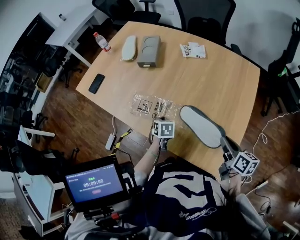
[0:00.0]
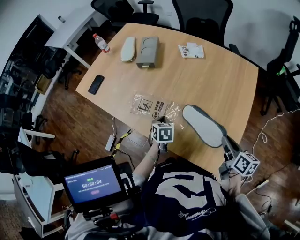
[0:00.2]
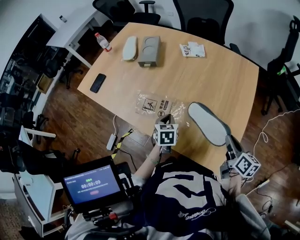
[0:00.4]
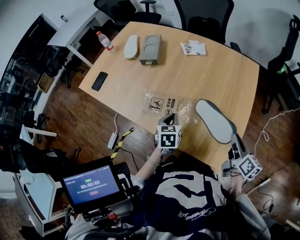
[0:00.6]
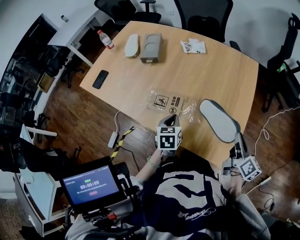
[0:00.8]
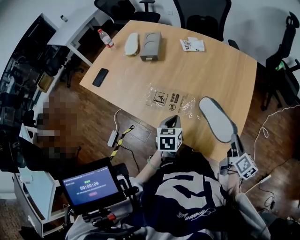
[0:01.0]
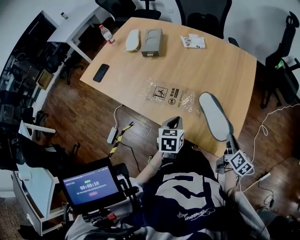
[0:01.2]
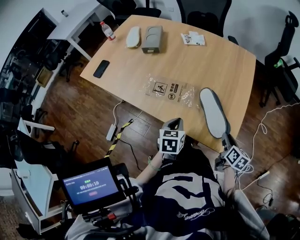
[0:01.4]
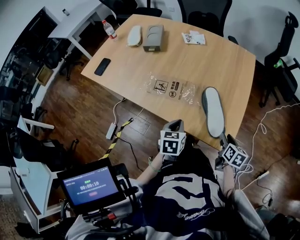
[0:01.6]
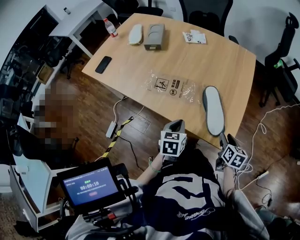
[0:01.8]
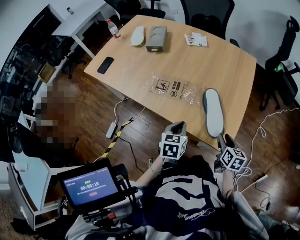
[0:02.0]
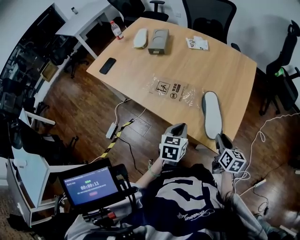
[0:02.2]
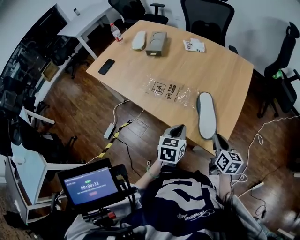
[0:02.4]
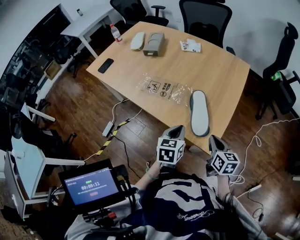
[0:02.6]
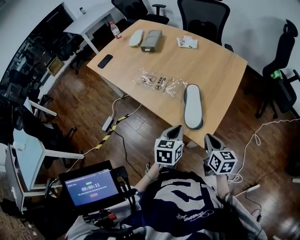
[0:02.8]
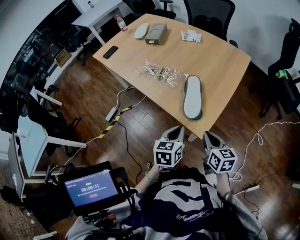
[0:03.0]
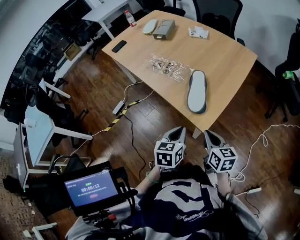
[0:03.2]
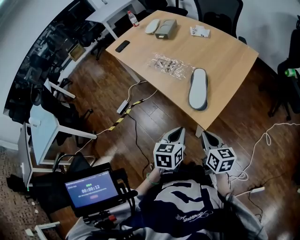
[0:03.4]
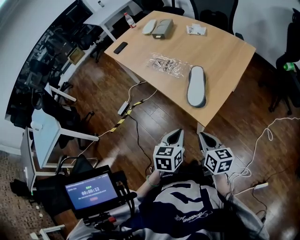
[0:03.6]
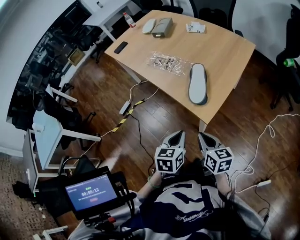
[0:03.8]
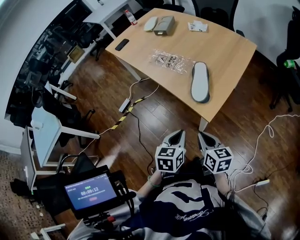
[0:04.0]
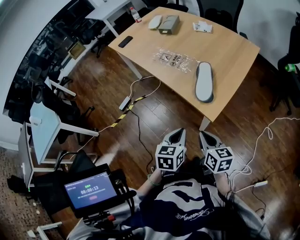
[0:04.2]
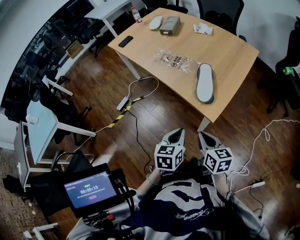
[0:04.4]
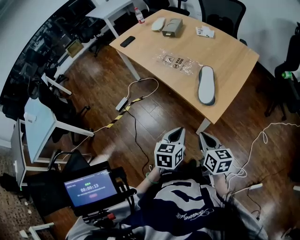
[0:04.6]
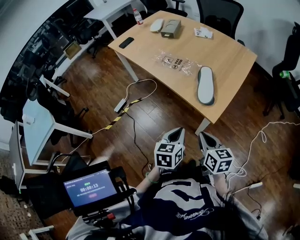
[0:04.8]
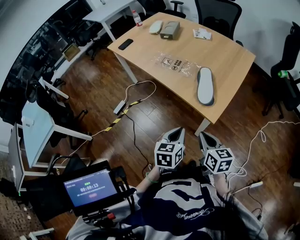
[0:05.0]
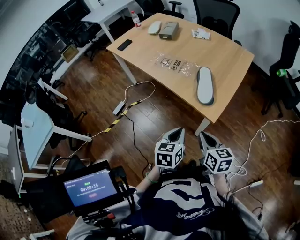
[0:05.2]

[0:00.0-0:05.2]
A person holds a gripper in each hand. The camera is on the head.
0:00.0 to 0:01.8: The right gripper heads backward and downward, covering approximately 15 cm, rotates some 30 degrees, and opens its fingers; the left gripper shifts approximately 20 cm backward, upward and to the right, and changes its angle by approximately 30 degrees.
0:01.8 to 0:03.4: The left gripper moves about 25 cm, while the right gripper changes place by approximately 15 cm, rotates roughly 40 degrees, and closes.
0:03.4 to 0:05.2: The grippers both shift to the left by roughly 10 cm.

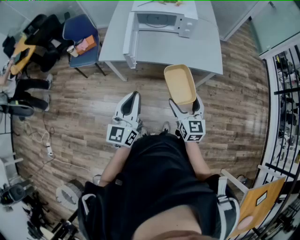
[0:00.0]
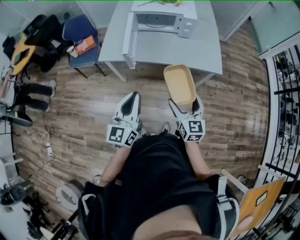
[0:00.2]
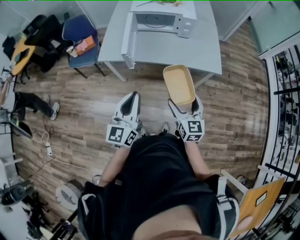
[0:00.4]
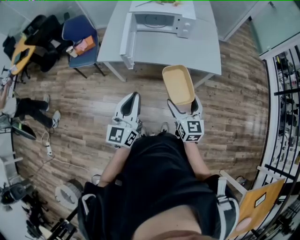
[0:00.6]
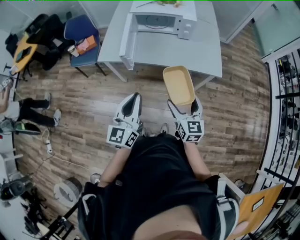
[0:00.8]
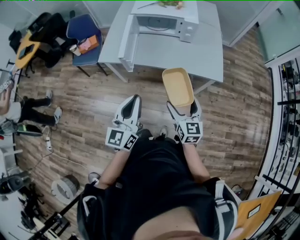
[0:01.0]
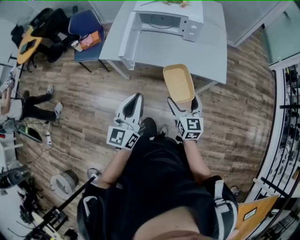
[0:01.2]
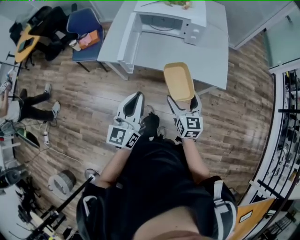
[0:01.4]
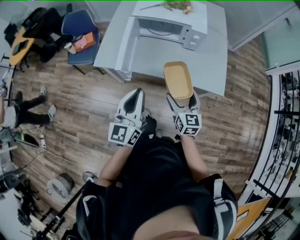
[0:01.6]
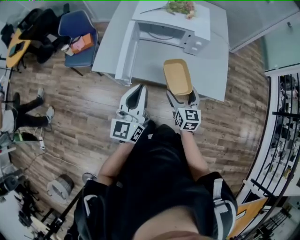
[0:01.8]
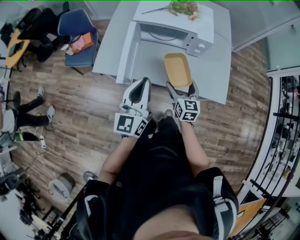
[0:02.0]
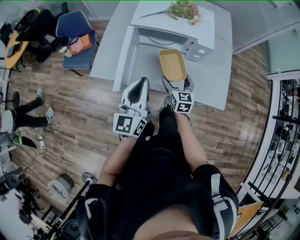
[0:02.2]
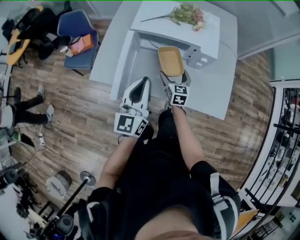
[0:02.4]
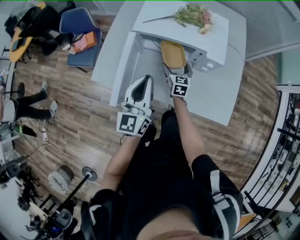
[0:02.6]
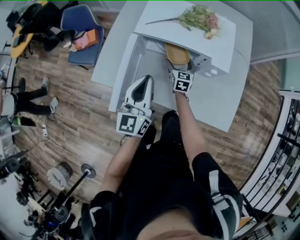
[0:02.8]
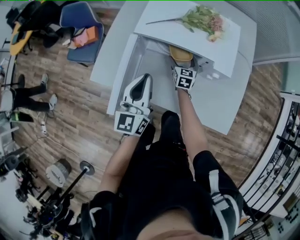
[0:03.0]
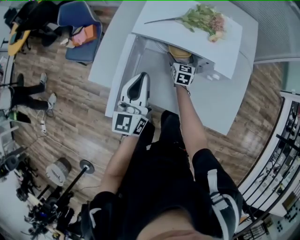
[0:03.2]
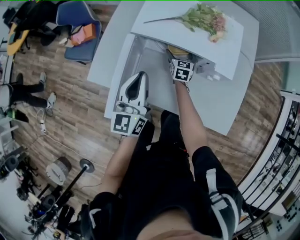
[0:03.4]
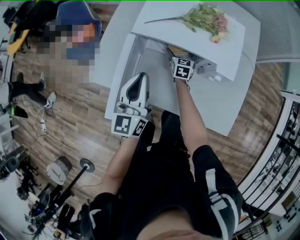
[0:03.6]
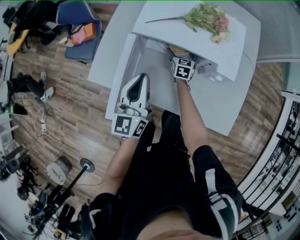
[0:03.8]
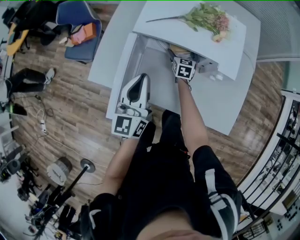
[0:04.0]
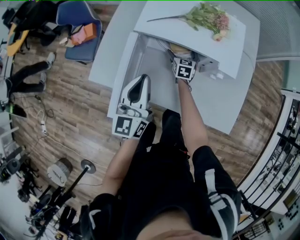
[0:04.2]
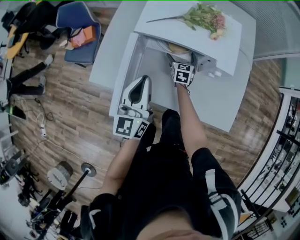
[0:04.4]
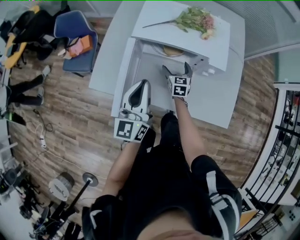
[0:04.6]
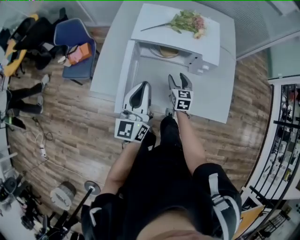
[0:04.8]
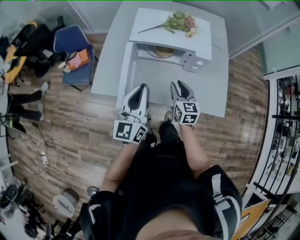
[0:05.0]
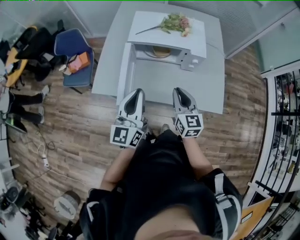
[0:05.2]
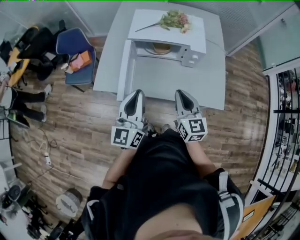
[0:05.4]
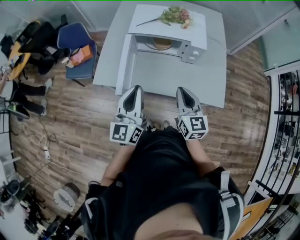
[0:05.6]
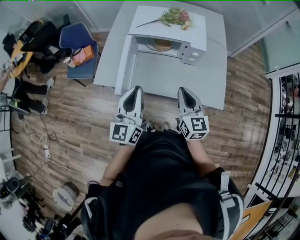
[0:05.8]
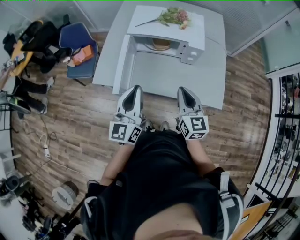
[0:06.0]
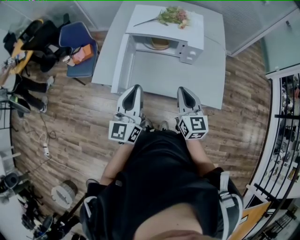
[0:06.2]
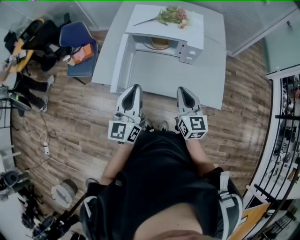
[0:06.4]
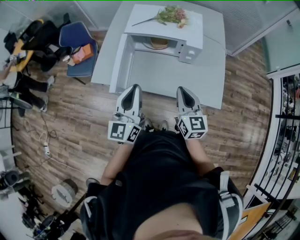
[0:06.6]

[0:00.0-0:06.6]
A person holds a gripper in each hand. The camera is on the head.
0:00.0 to 0:01.6: Both grippers travel together forward, some 20 cm.
0:01.6 to 0:03.2: The right gripper moves forward and downward, approximately 50 cm. The left gripper heads forward, covering approximately 35 cm.
0:03.2 to 0:05.0: The right gripper goes roughly 30 cm backward and upward, and closes its fingers. The left gripper moves backward and upward, about 15 cm.
0:05.0 to 0:06.6: The right gripper goes about 15 cm backward, upward and to the right, while the left gripper goes roughly 10 cm backward.

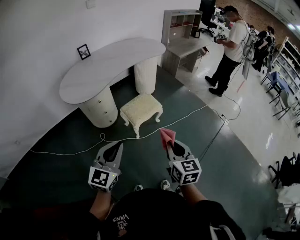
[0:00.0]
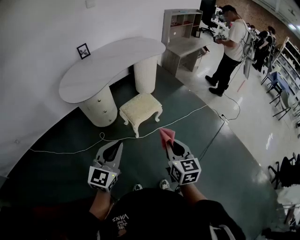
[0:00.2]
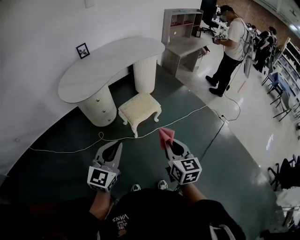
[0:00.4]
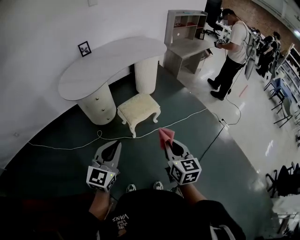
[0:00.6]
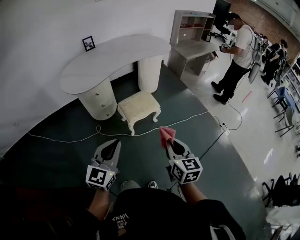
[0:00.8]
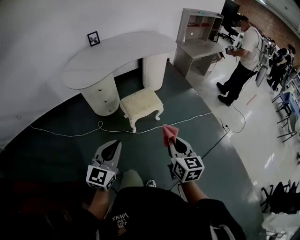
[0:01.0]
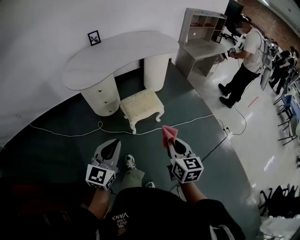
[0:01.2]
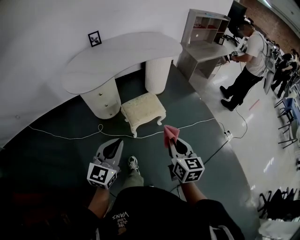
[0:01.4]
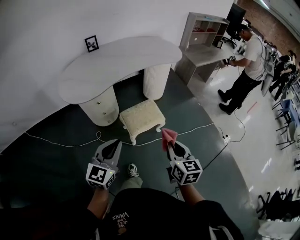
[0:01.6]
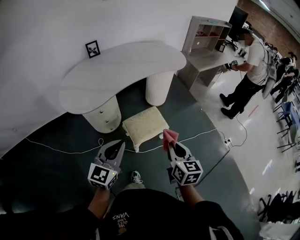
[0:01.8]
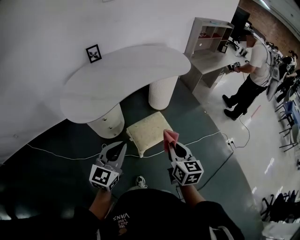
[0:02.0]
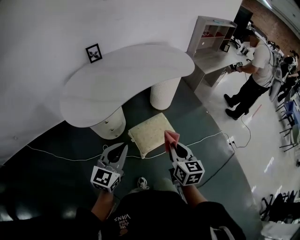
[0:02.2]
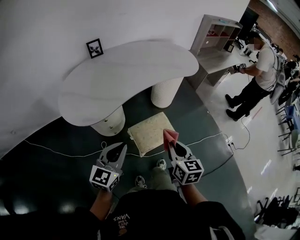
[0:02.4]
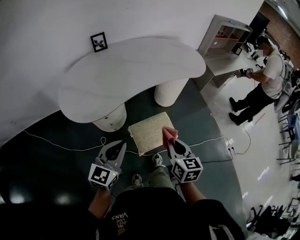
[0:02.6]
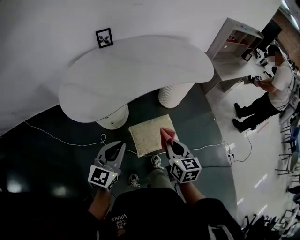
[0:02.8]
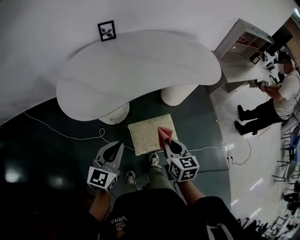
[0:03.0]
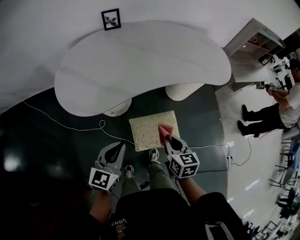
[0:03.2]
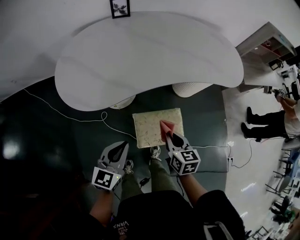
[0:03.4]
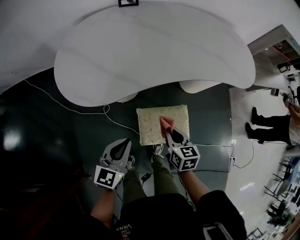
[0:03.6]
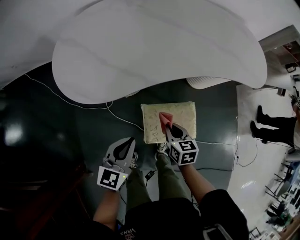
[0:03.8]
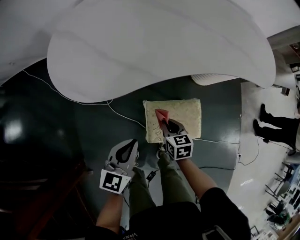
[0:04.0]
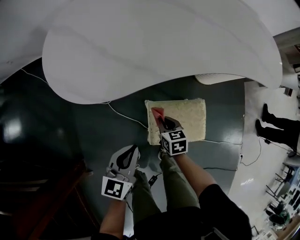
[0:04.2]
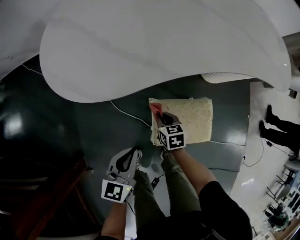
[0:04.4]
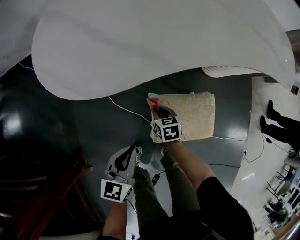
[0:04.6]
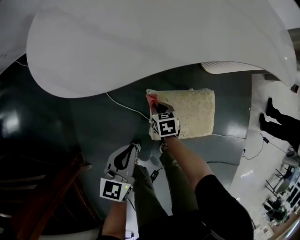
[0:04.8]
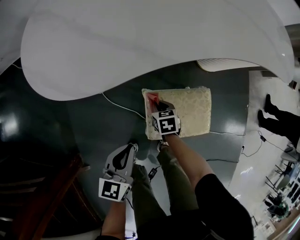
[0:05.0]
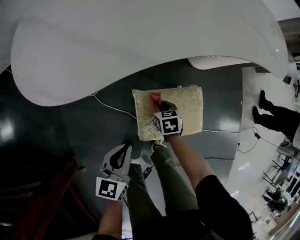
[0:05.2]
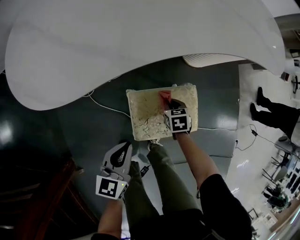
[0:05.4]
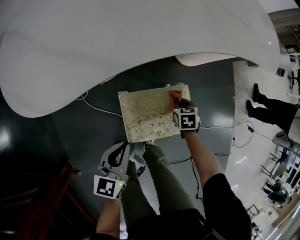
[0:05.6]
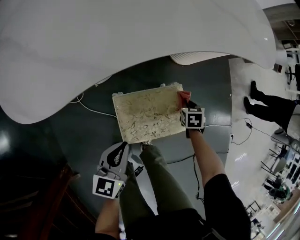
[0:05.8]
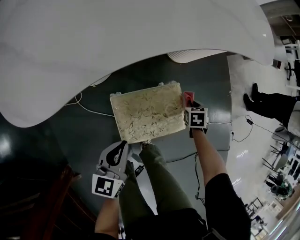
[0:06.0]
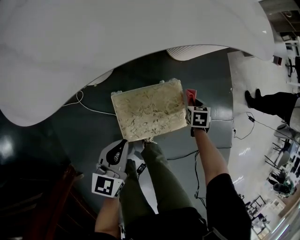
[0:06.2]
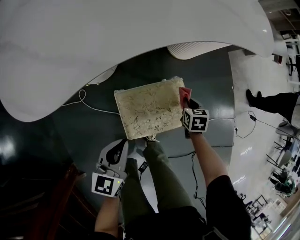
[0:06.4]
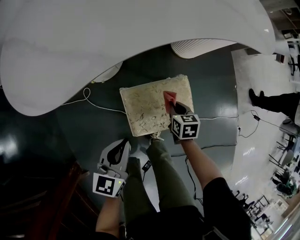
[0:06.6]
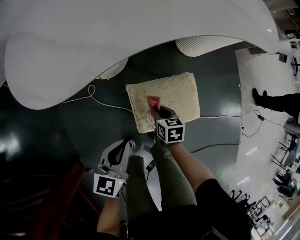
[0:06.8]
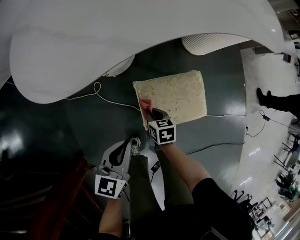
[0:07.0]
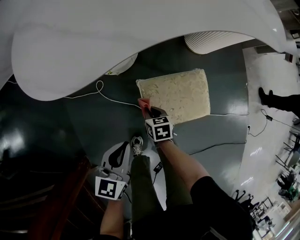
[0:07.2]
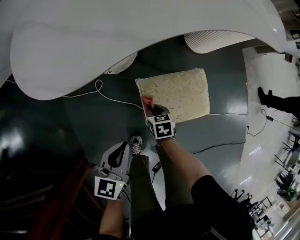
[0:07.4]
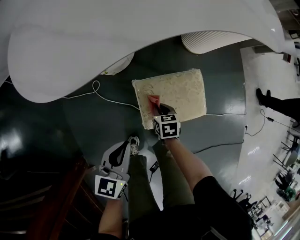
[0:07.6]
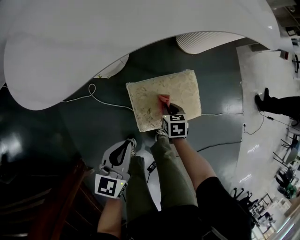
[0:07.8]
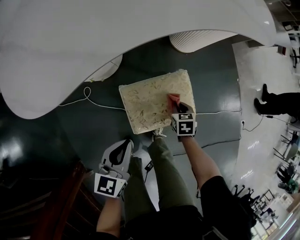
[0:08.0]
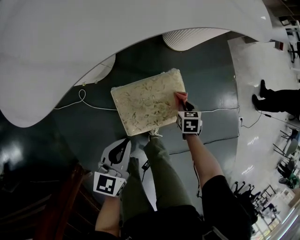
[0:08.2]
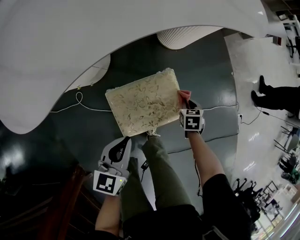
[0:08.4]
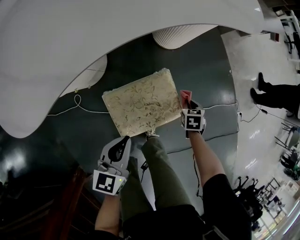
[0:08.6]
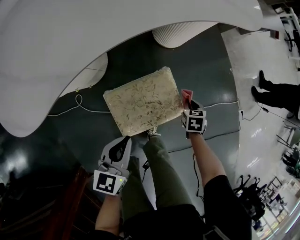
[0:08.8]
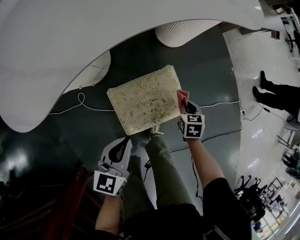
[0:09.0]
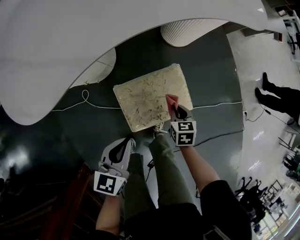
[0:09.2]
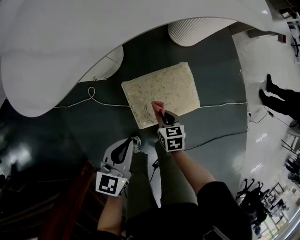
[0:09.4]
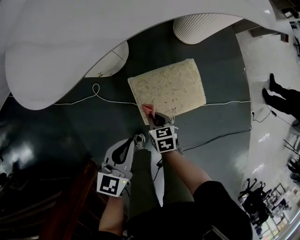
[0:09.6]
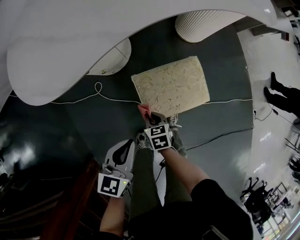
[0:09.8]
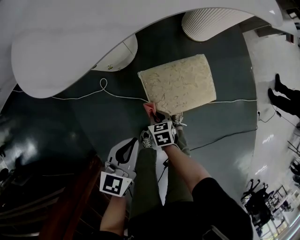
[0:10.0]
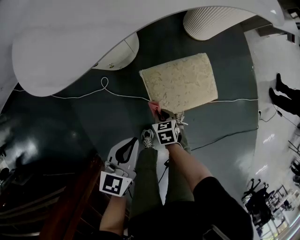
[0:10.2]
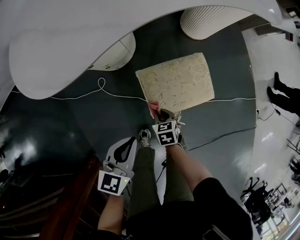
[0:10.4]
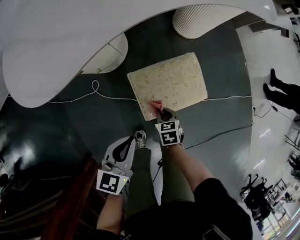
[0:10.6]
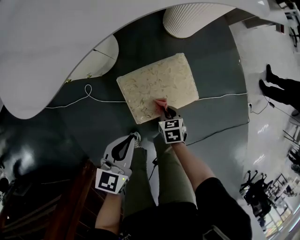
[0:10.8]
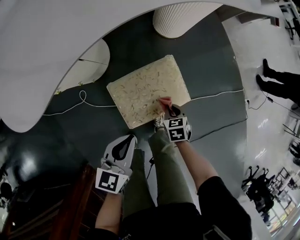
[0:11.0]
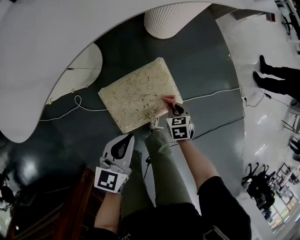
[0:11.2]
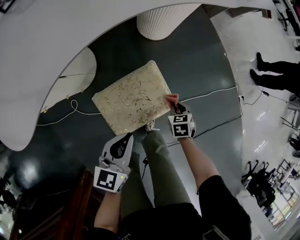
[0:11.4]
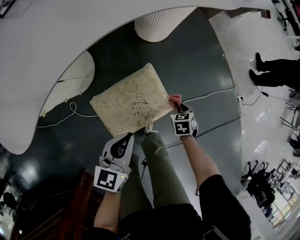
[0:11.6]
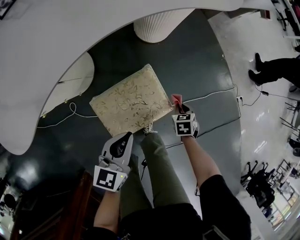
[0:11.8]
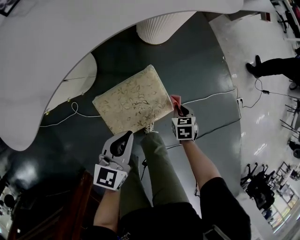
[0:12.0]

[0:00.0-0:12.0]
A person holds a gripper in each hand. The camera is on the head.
0:00.0 to 0:01.6: The grippers both shift forward by some 20 cm.
0:01.6 to 0:03.0: Both grippers travel together forward, some 30 cm.
0:03.0 to 0:04.4: The grippers both shift downward by some 35 cm. The right gripper changes its angle by approximately 30 degrees; the left gripper changes its angle by roughly 20 degrees.
0:04.4 to 0:06.0: The right gripper moves some 35 cm, and rotates about 40 degrees. Meanwhile the left gripper moves approximately 15 cm.
0:06.0 to 0:07.6: The right gripper ends up roughly 30 cm from where it was, and swivels about 20 degrees; the left gripper moves some 10 cm.
0:07.6 to 0:09.0: The left gripper moves about 10 cm. Meanwhile the right gripper ends up about 25 cm from where it was.
0:09.0 to 0:10.4: The left gripper is displaced to the left and backward by approximately 15 cm, while the right gripper moves to the left and backward, some 30 cm.
0:10.4 to 0:12.0: The right gripper changes place by roughly 35 cm, and turns by roughly 20 degrees. The left gripper shifts by some 25 cm.
